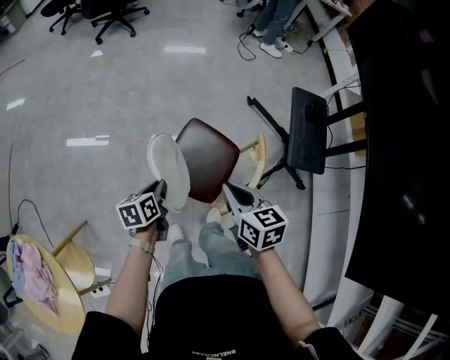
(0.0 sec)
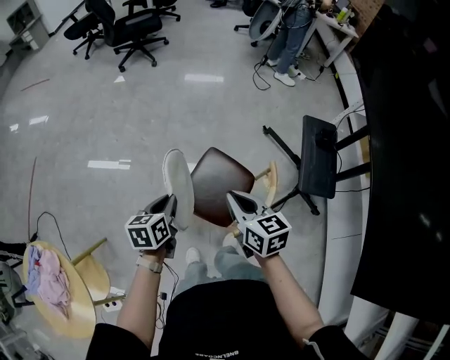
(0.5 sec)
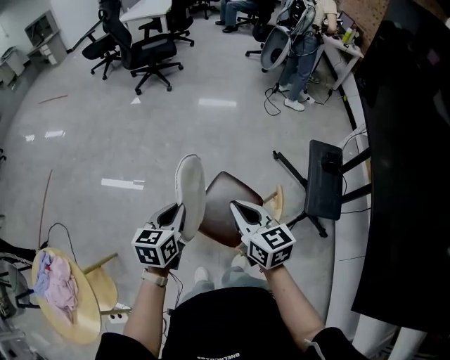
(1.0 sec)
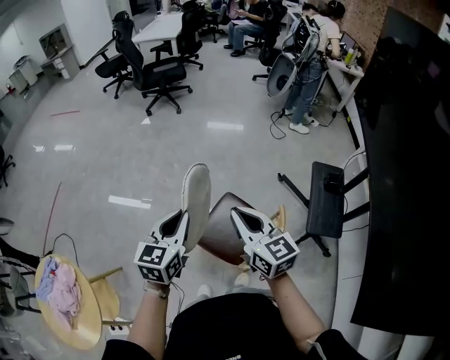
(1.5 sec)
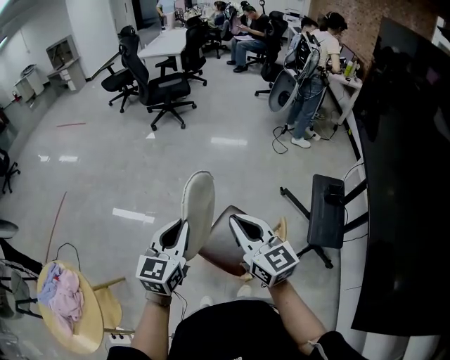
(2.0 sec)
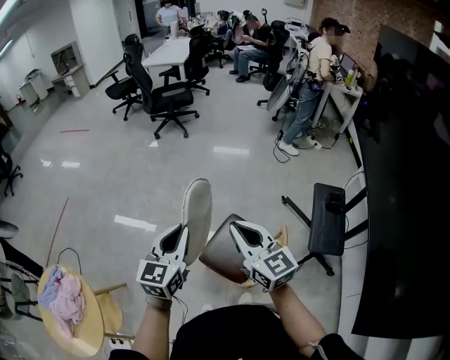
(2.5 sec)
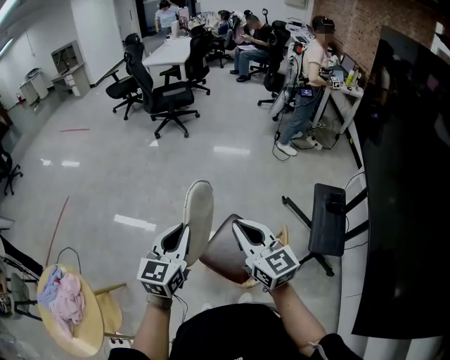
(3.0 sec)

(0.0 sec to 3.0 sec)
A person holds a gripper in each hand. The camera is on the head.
0.0 sec - 1.5 sec: The right gripper goes roughly 20 cm upward, and turns by roughly 30 degrees, while the left gripper goes some 30 cm upward, and rotates approximately 40 degrees.
1.5 sec - 3.0 sec: The grippers make only small movements.

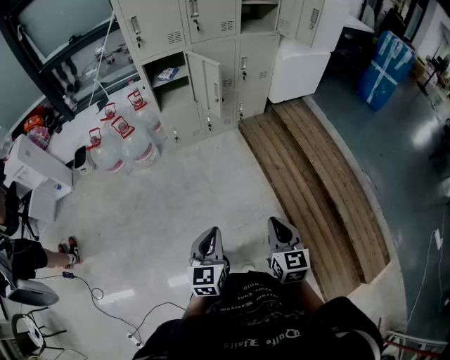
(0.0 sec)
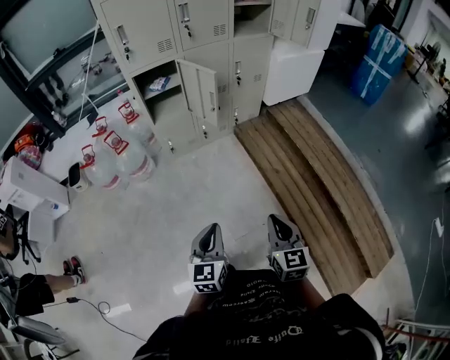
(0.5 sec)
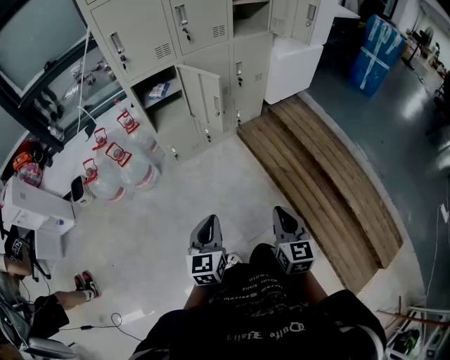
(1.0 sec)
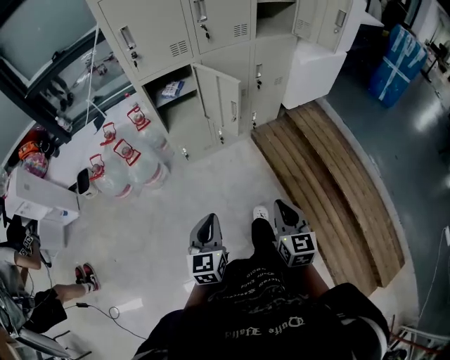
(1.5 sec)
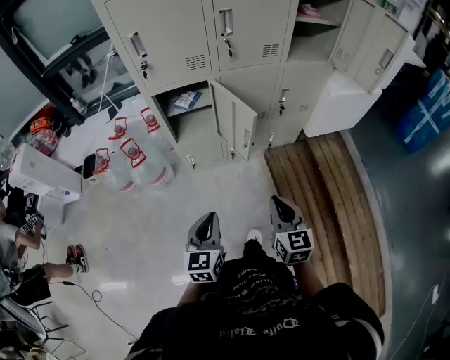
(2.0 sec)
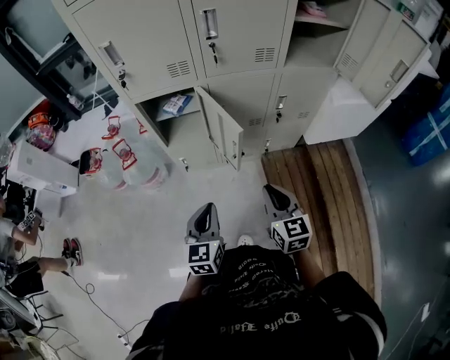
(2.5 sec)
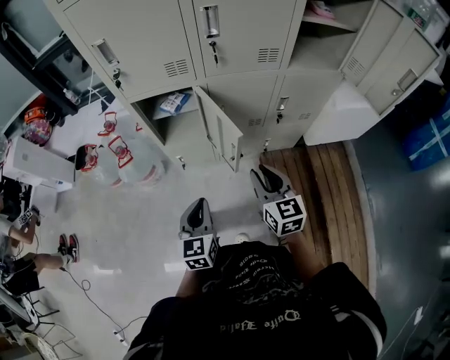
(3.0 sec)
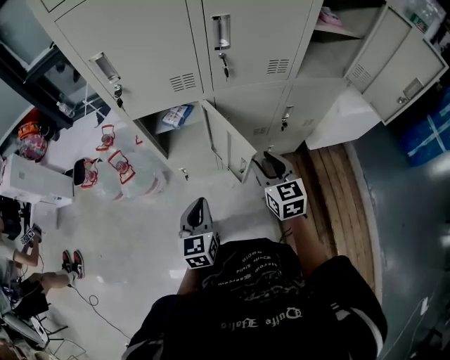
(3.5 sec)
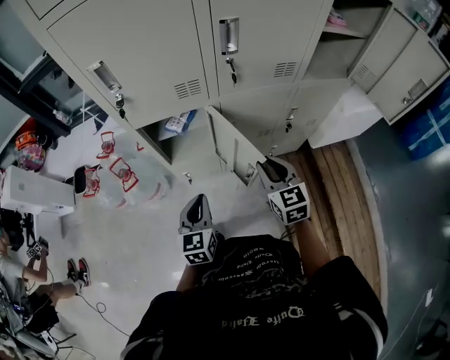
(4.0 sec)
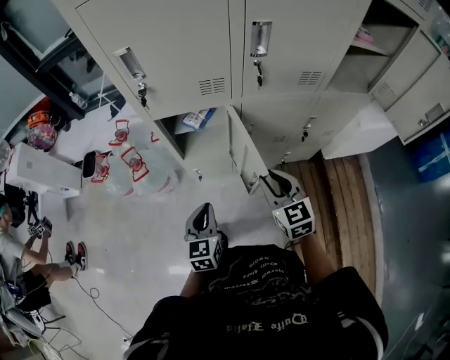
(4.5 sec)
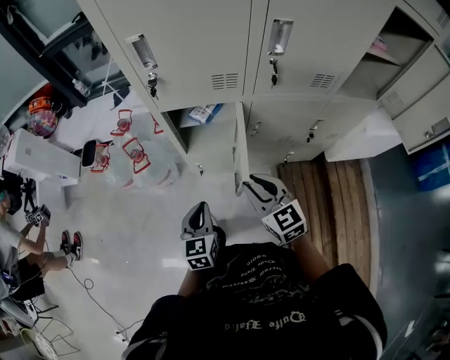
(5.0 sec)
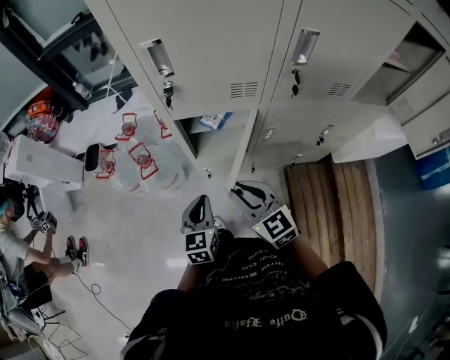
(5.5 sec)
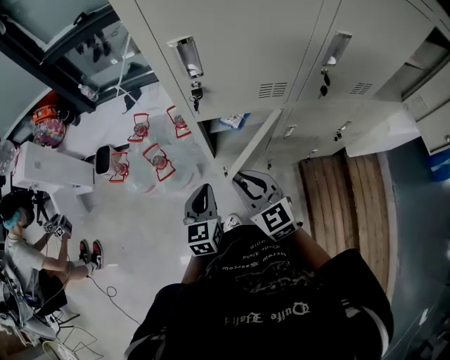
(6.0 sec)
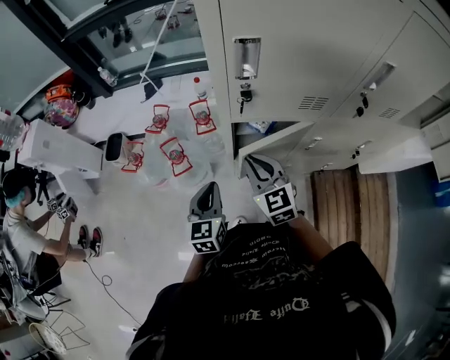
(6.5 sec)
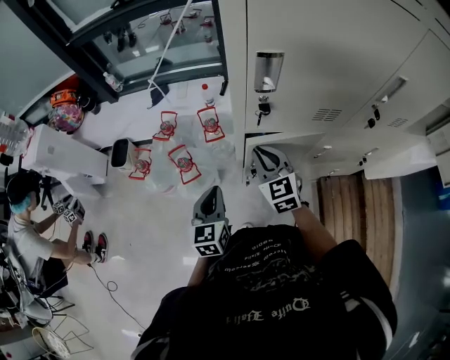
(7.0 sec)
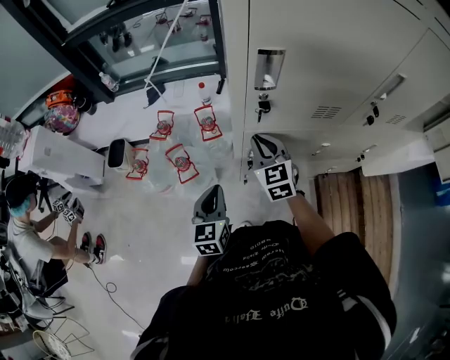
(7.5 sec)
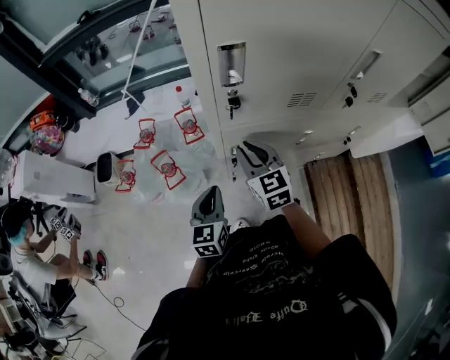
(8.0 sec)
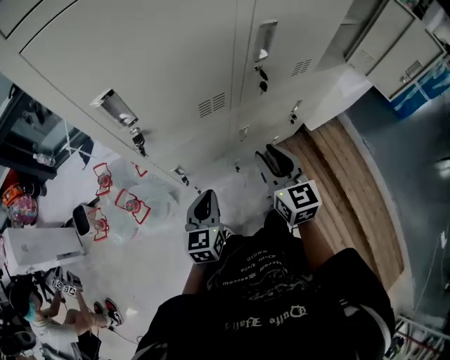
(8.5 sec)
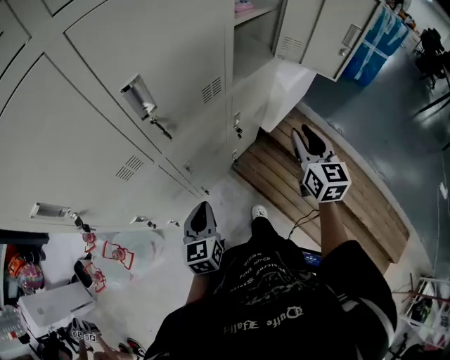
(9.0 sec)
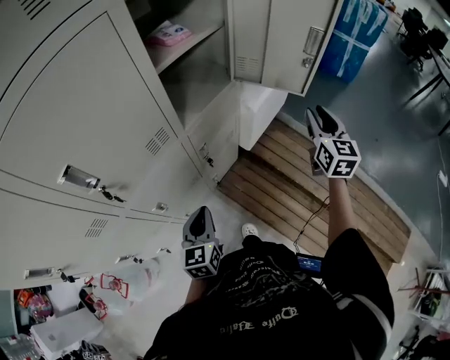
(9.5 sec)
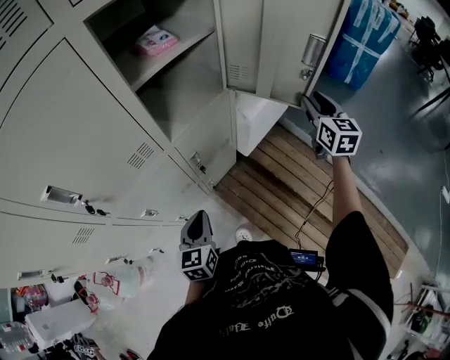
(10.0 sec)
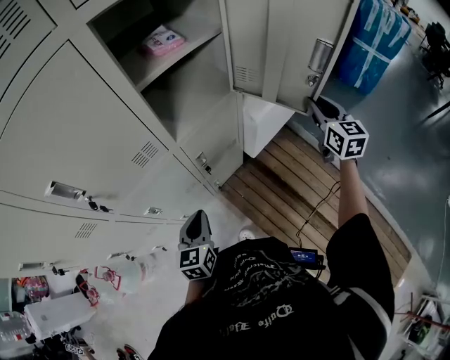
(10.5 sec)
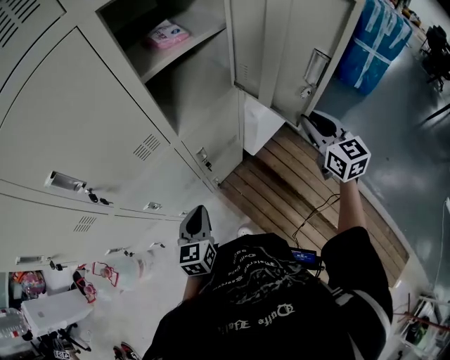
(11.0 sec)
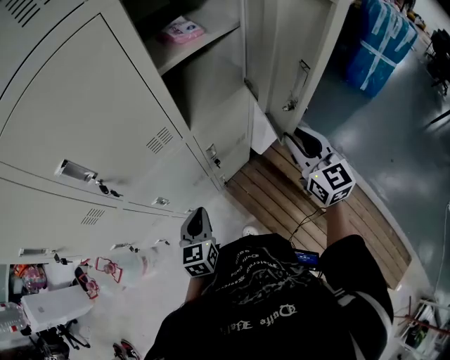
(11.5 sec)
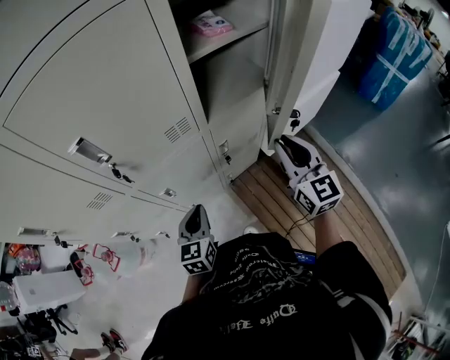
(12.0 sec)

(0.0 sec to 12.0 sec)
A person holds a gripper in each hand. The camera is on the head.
0.0 sec - 2.0 sec: Both grippers travel together forward, approximately 40 cm.
2.0 sec - 4.0 sec: Both grippers travel together forward, roughly 25 cm.
4.0 sec - 6.0 sec: The left gripper goes some 20 cm to the left and forward; the right gripper travels to the left by approximately 25 cm, and swivels about 20 degrees.
6.0 sec - 8.0 sec: The right gripper moves forward, approximately 15 cm.
8.0 sec - 10.0 sec: The two grippers travel together, some 70 cm. The right gripper rotates approximately 60 degrees, and opens. Meanwhile the left gripper swivels roughly 30 degrees.
10.0 sec - 12.0 sec: The right gripper moves to the left and backward, approximately 25 cm, changes its angle by roughly 30 degrees, and closes. The left gripper is displaced to the left by approximately 10 cm.

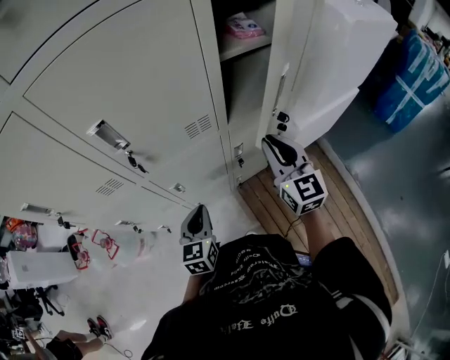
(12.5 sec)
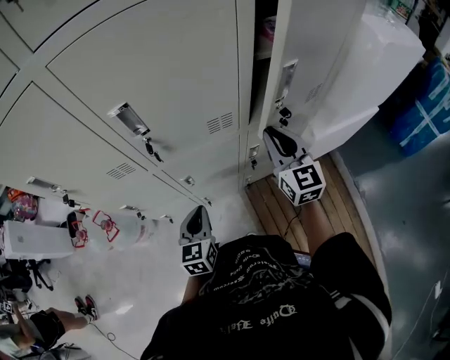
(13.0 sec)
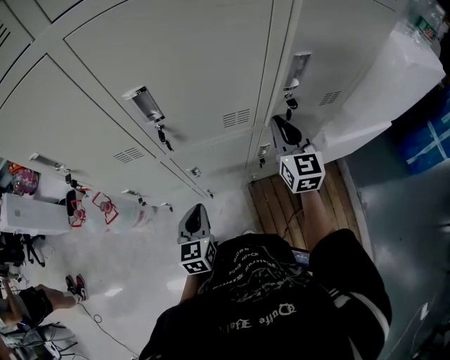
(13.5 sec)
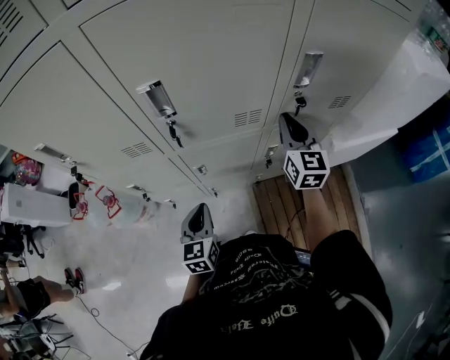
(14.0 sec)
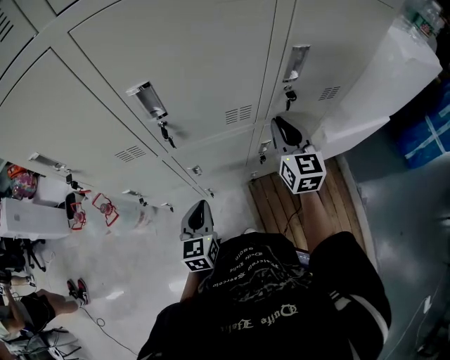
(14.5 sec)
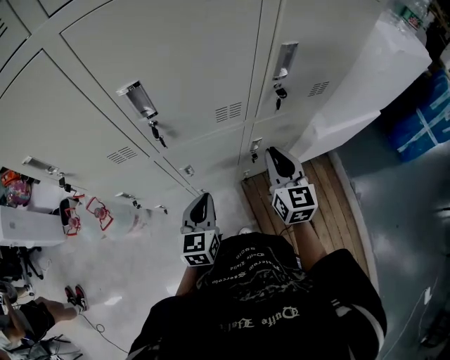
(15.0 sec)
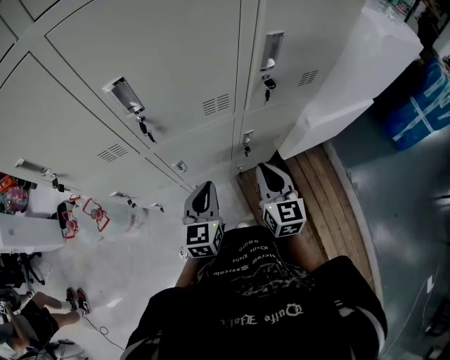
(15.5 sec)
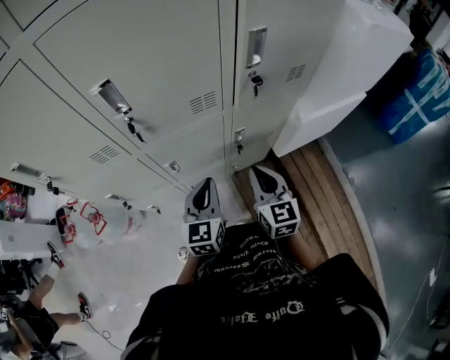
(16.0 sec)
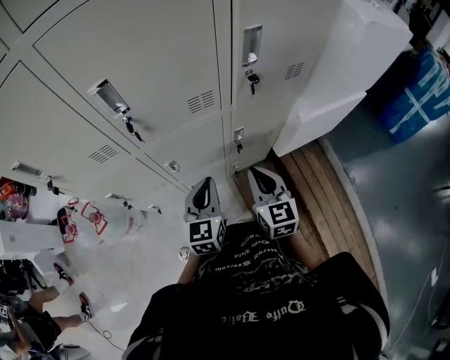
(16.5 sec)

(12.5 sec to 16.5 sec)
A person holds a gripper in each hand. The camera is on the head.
12.5 sec - 14.5 sec: The left gripper heads to the left, covering about 5 cm, while the right gripper heads forward, covering some 10 cm.
14.5 sec - 16.5 sec: The right gripper heads backward and downward, covering approximately 20 cm; the left gripper heads to the right, covering some 10 cm.

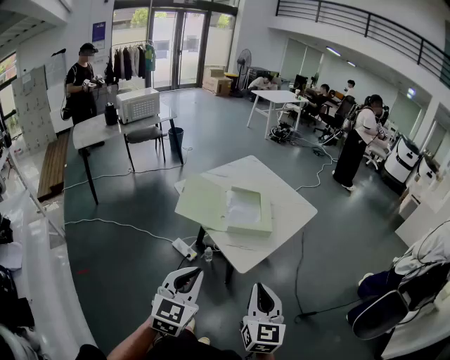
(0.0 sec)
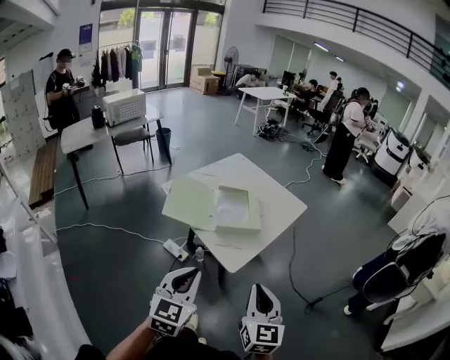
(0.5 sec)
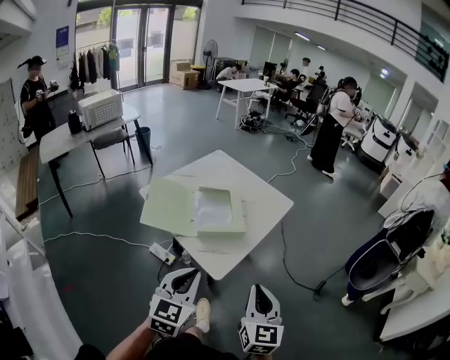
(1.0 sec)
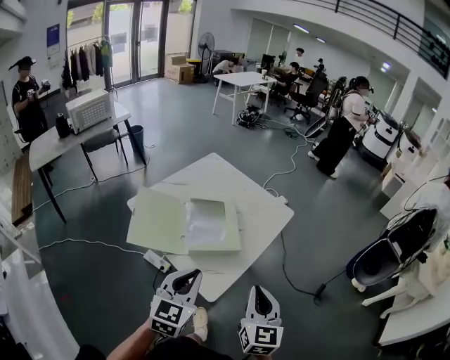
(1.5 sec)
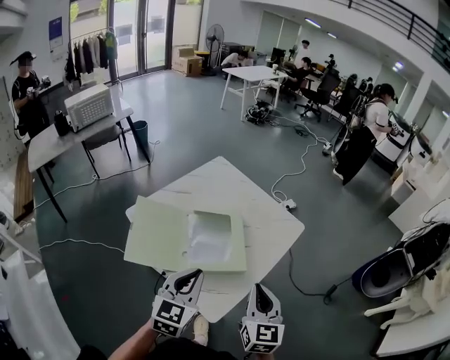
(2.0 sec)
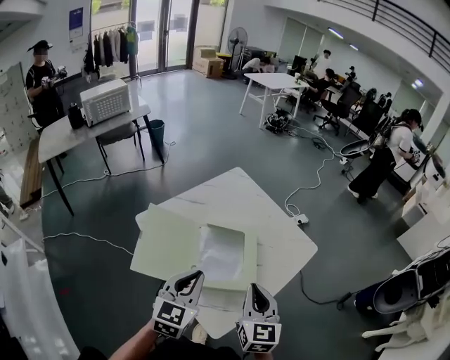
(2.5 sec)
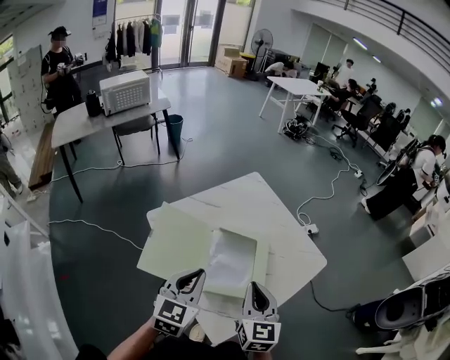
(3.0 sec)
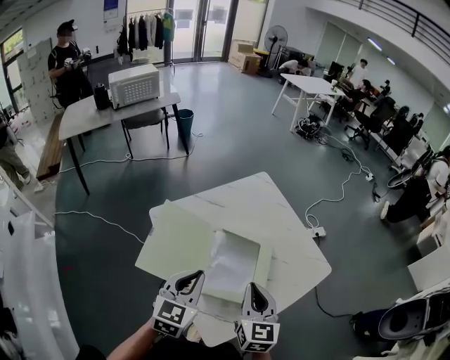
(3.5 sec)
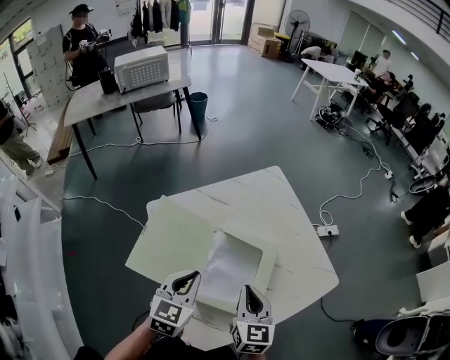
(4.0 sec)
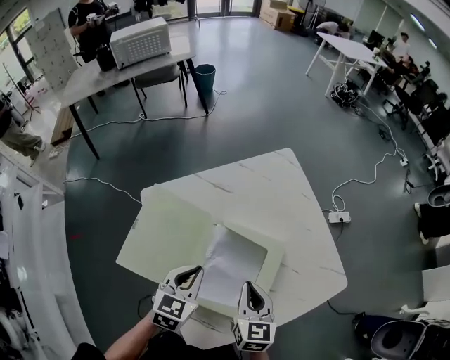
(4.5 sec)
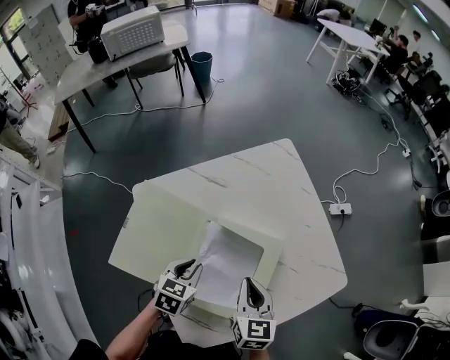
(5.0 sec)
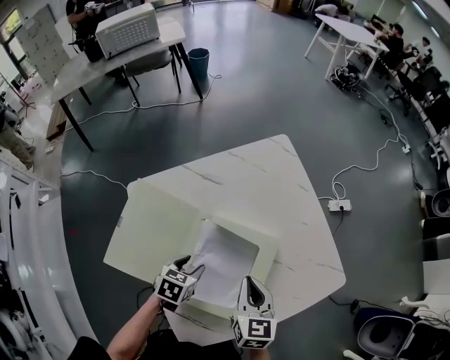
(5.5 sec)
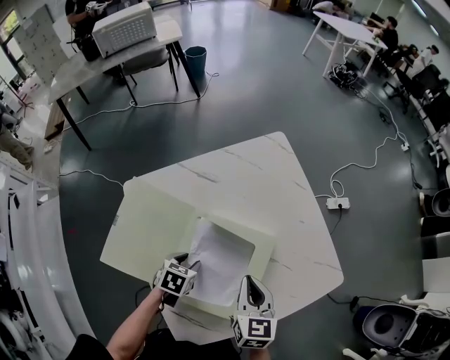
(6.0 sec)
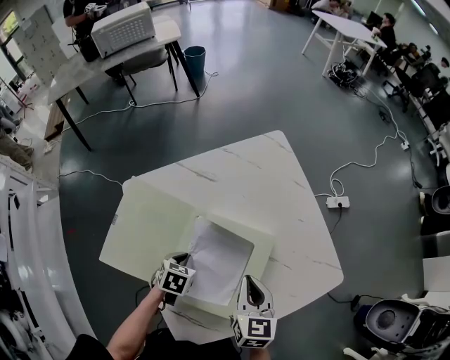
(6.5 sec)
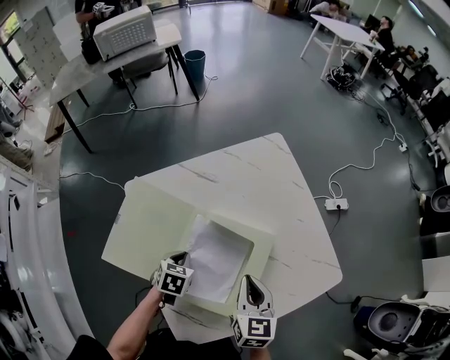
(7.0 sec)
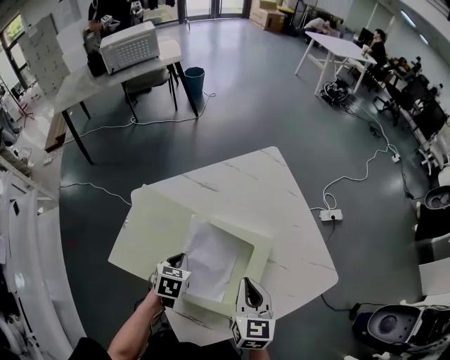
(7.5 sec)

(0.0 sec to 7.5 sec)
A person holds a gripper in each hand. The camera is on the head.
0.0 sec - 2.0 sec: The two grippers go some 40 cm forward.
2.0 sec - 4.0 sec: Both grippers travel together forward and downward, approximately 25 cm. The left gripper changes its angle by some 20 degrees; the right gripper changes its angle by roughly 30 degrees.
4.0 sec - 5.5 sec: The left gripper moves downward, about 20 cm, swivels about 30 degrees, and opens. Meanwhile the right gripper shifts roughly 15 cm forward and downward.
5.5 sec - 7.5 sec: The right gripper changes place by approximately 5 cm. The left gripper moves about 5 cm, and closes.
